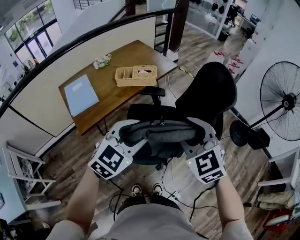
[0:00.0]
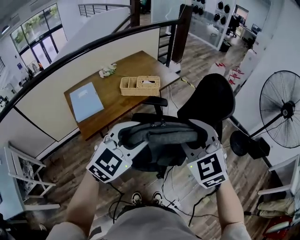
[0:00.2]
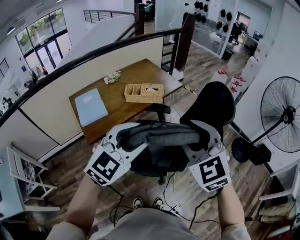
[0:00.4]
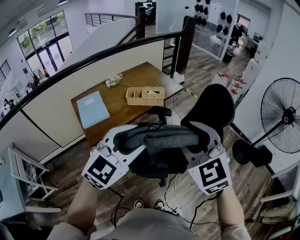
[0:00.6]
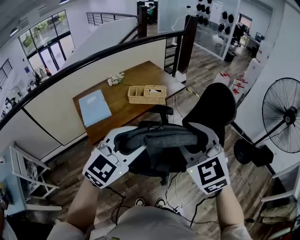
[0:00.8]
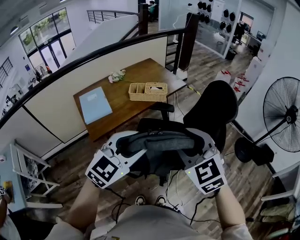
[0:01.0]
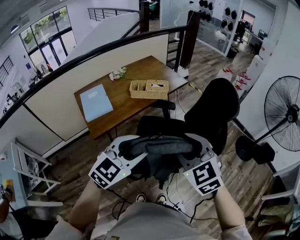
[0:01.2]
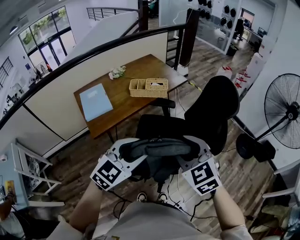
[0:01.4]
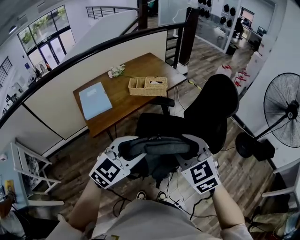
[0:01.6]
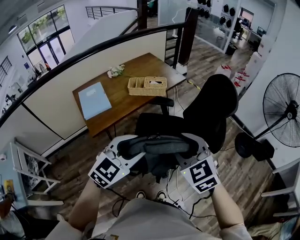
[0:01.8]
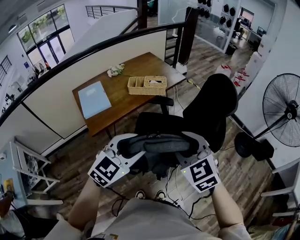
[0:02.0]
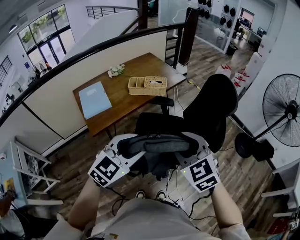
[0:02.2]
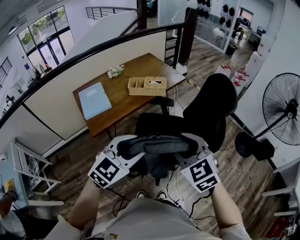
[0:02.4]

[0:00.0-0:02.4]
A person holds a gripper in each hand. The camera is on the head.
0:00.0 to 0:01.2: The grippers both shift backward by some 5 cm. The left gripper moves roughly 10 cm upward and comes back. The right gripper goes upward and returns, some 10 cm each way.
0:01.2 to 0:02.4: The grippers move only a little.

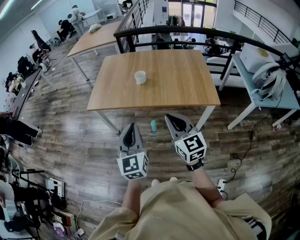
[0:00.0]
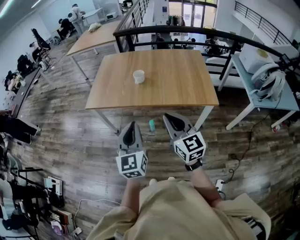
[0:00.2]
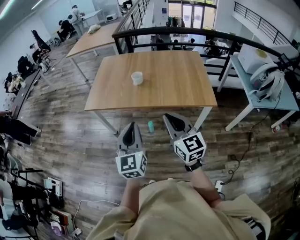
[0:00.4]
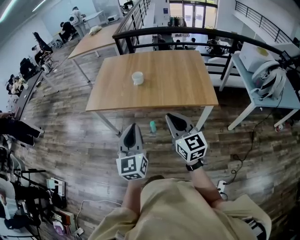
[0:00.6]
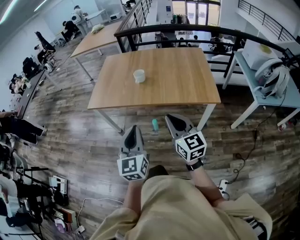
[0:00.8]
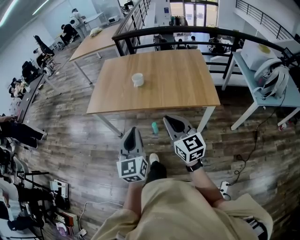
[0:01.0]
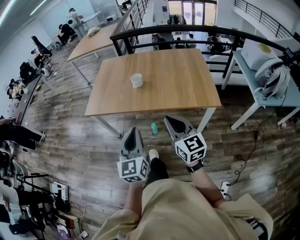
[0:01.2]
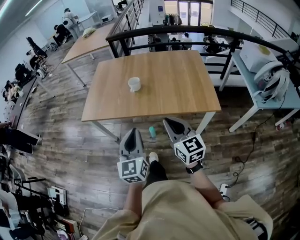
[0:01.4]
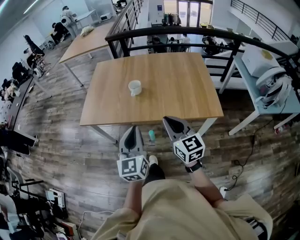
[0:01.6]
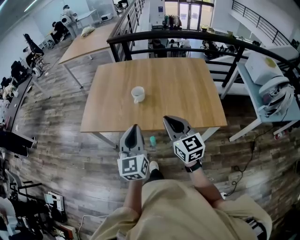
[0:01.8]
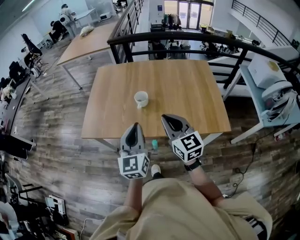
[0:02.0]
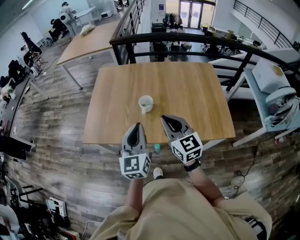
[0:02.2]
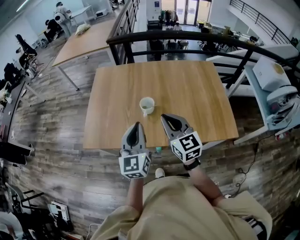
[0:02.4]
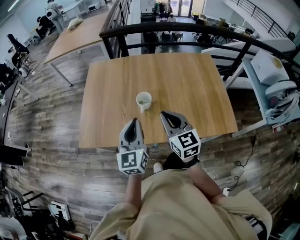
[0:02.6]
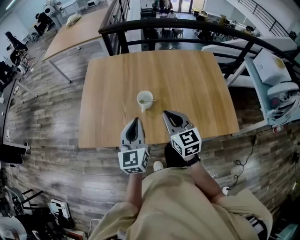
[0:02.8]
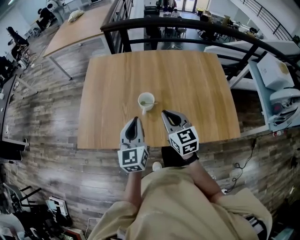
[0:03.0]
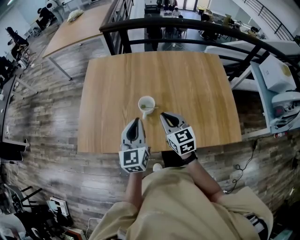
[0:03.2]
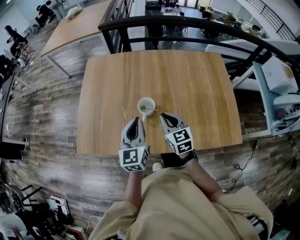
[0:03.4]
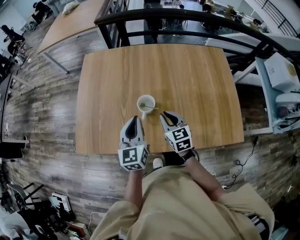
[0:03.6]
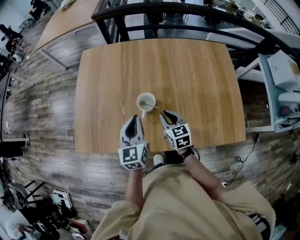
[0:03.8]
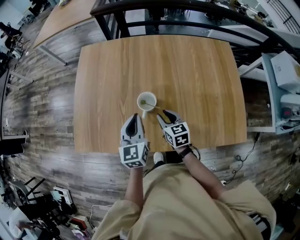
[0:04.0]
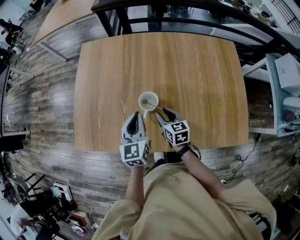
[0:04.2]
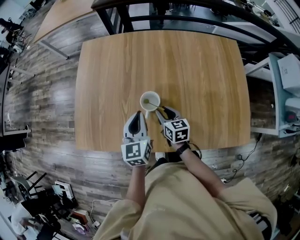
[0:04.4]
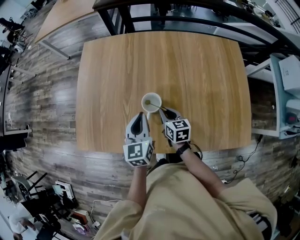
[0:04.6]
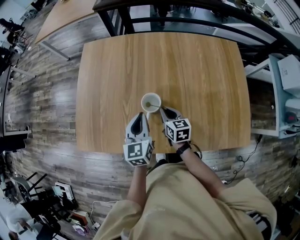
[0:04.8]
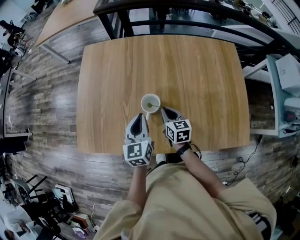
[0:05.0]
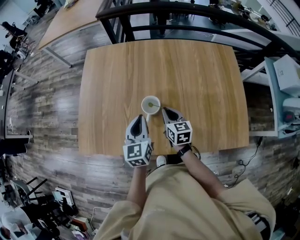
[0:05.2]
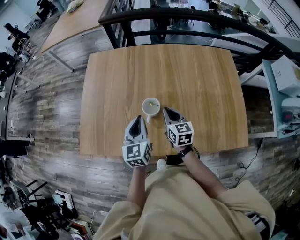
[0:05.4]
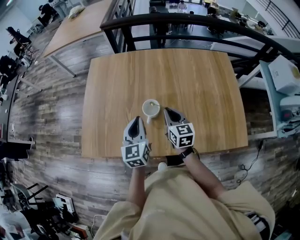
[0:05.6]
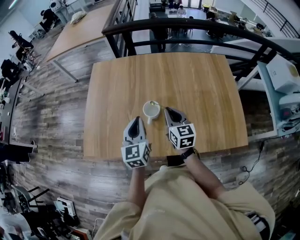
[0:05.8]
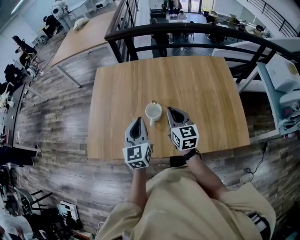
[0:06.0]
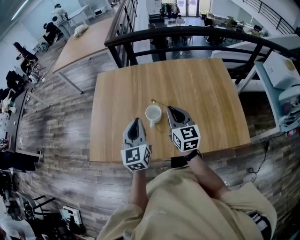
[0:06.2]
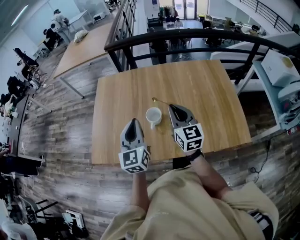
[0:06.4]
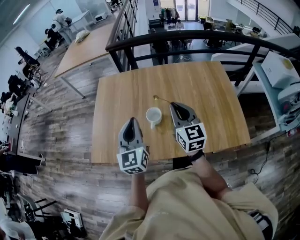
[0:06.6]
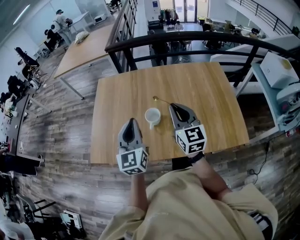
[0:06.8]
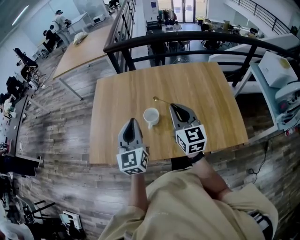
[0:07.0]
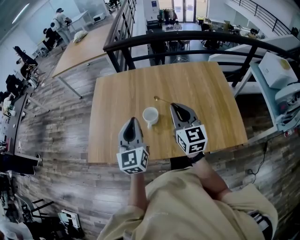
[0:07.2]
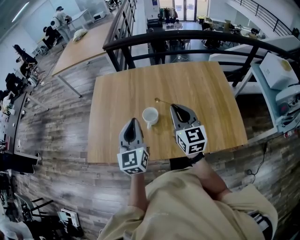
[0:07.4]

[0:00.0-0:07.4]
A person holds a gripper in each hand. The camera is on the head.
0:00.0 to 0:01.4: The left gripper moves forward and to the right, approximately 10 cm. The right gripper moves forward, roughly 5 cm.
0:01.4 to 0:03.0: Both grippers travel together forward, some 40 cm.
0:03.0 to 0:04.4: The left gripper is displaced forward and downward by about 15 cm, while the right gripper shifts roughly 20 cm downward and forward, changes its angle by about 30 degrees, and opens its fingers.
0:04.4 to 0:06.0: The left gripper is displaced upward and backward by about 10 cm; the right gripper moves upward, some 15 cm, rotates approximately 30 degrees, and closes its fingers.
0:06.0 to 0:07.4: Both grippers move upward, about 10 cm.

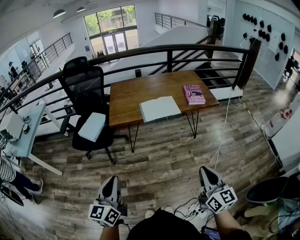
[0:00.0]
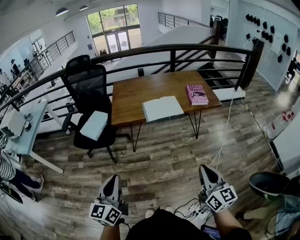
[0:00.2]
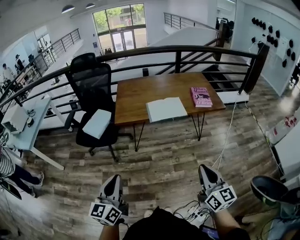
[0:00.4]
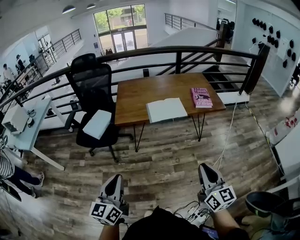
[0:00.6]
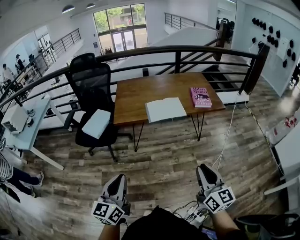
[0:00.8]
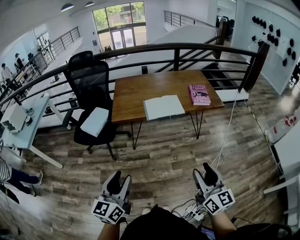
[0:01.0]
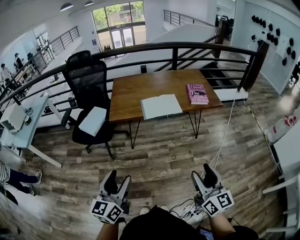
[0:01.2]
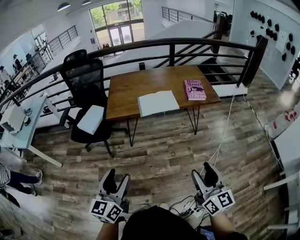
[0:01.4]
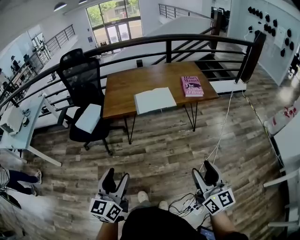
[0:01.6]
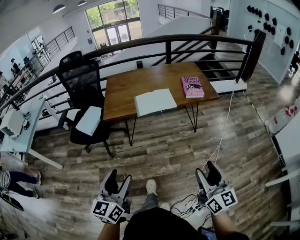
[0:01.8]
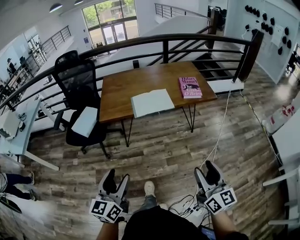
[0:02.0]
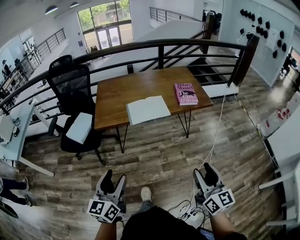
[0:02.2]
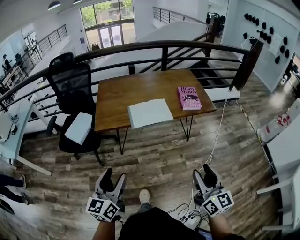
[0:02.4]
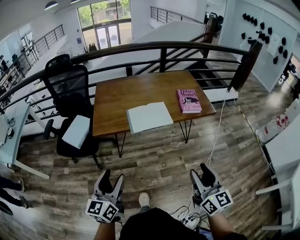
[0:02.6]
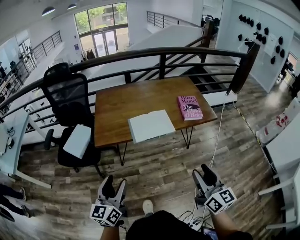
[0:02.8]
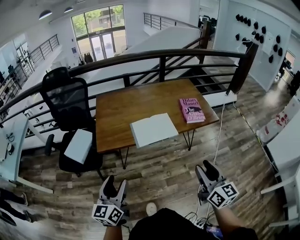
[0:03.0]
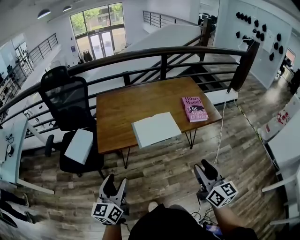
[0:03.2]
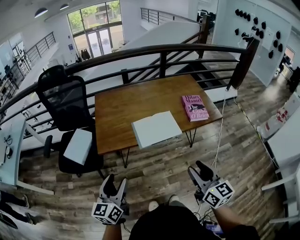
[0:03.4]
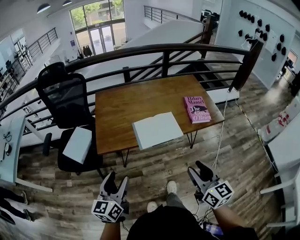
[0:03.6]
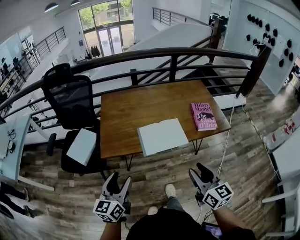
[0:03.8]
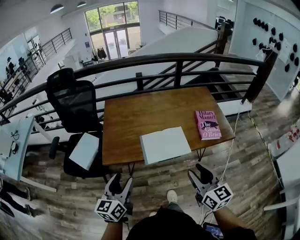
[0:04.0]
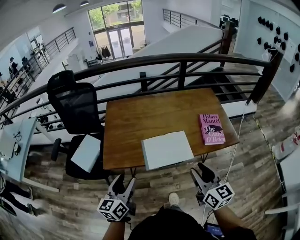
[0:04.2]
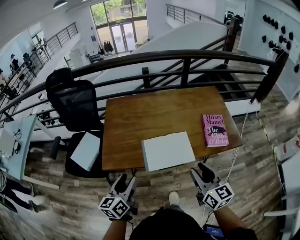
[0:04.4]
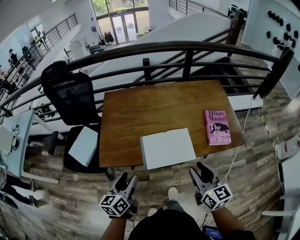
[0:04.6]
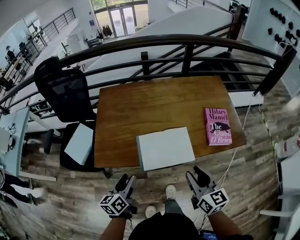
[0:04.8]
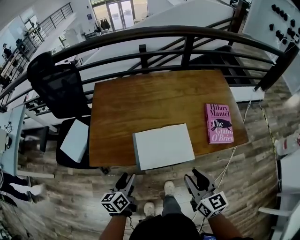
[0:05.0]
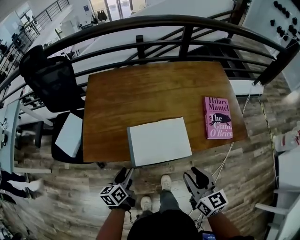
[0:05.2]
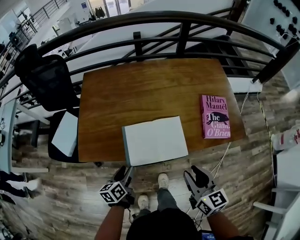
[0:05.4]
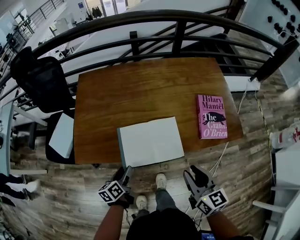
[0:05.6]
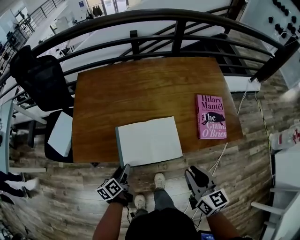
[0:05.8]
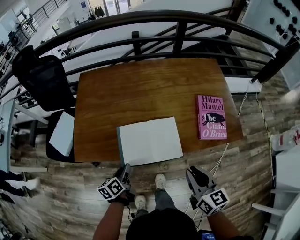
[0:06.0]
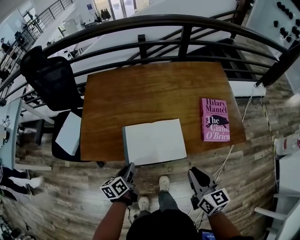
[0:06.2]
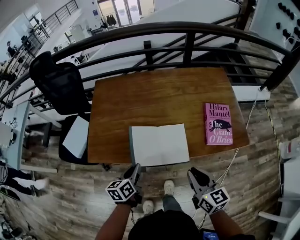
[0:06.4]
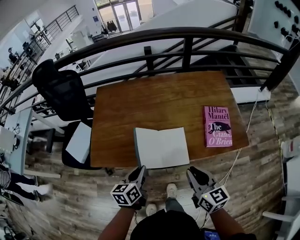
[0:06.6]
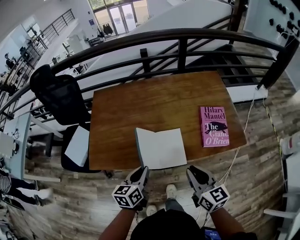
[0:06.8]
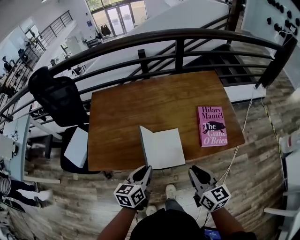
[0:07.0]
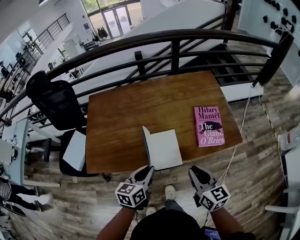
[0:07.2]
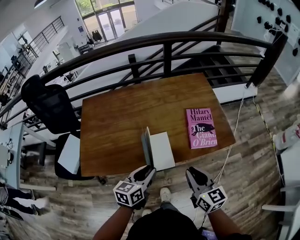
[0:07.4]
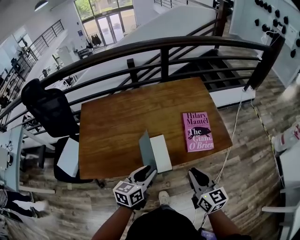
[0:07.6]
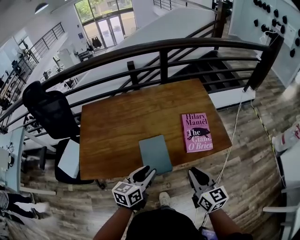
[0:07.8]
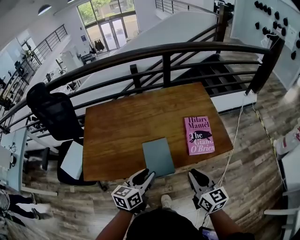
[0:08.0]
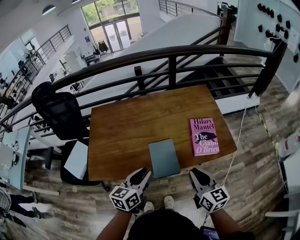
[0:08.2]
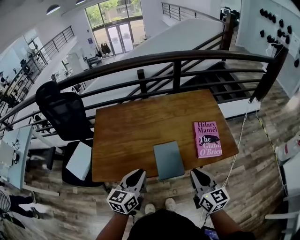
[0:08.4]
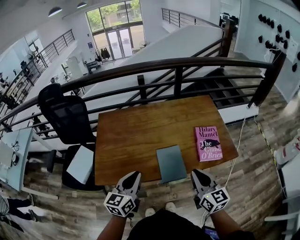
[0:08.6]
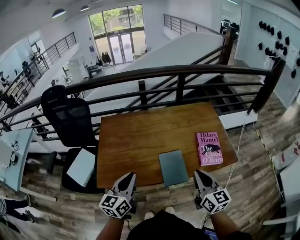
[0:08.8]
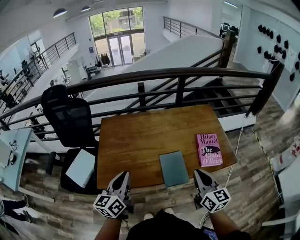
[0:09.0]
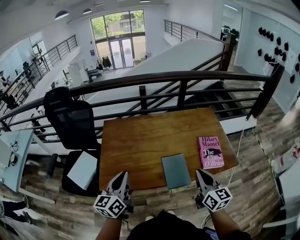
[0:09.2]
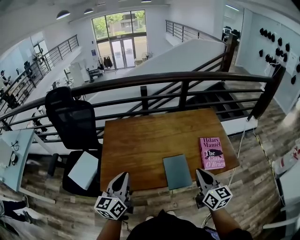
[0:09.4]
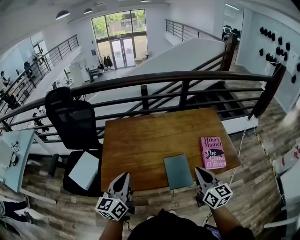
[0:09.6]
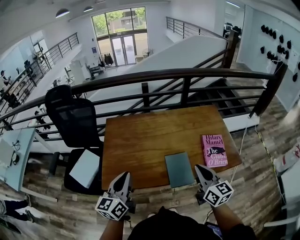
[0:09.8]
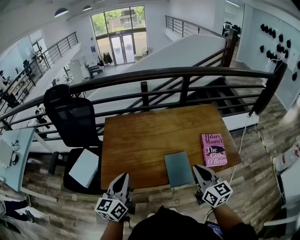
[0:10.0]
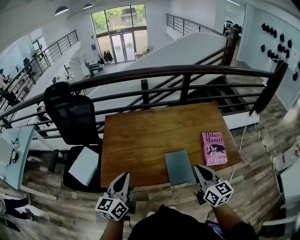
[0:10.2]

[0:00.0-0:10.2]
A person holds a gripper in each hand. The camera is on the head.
0:00.0 to 0:01.4: The right gripper opens; the left gripper moves to the right, roughly 10 cm, and opens.
0:01.4 to 0:03.0: Both grippers move forward, approximately 20 cm.
0:03.0 to 0:04.4: Both grippers travel together forward, roughly 20 cm.
0:04.4 to 0:05.8: The right gripper shifts roughly 10 cm downward and to the right. The left gripper heads downward, covering about 20 cm, and rotates some 30 degrees.
0:05.8 to 0:07.2: The left gripper travels upward and to the right by approximately 20 cm, changes its angle by some 40 degrees, and closes up.
0:07.2 to 0:08.8: The right gripper goes about 10 cm upward, while the left gripper moves to the left and upward, approximately 20 cm, changes its angle by approximately 20 degrees, and opens, then closes once more.
0:08.8 to 0:10.2: The left gripper is displaced to the left by some 5 cm.

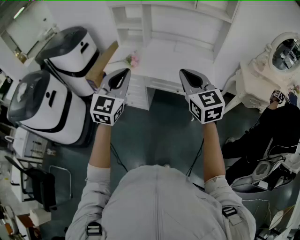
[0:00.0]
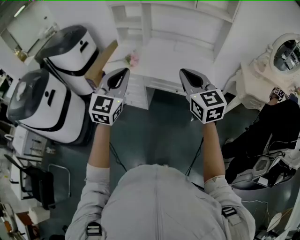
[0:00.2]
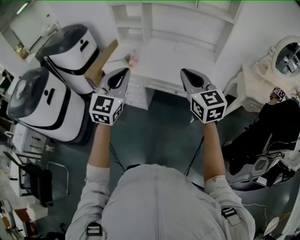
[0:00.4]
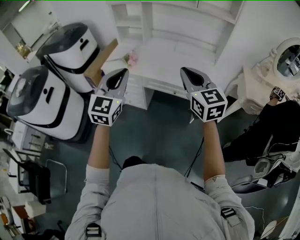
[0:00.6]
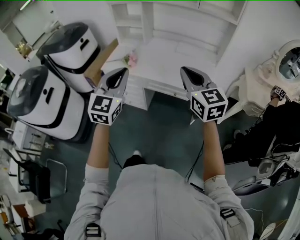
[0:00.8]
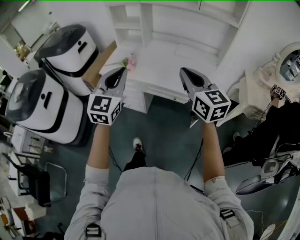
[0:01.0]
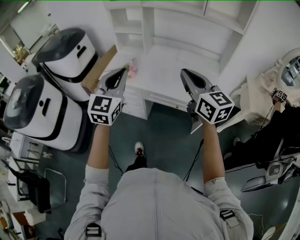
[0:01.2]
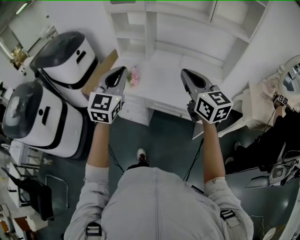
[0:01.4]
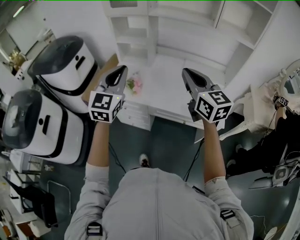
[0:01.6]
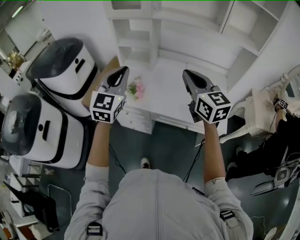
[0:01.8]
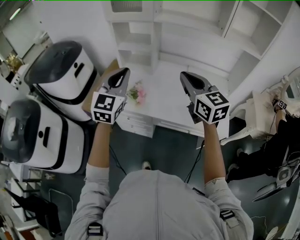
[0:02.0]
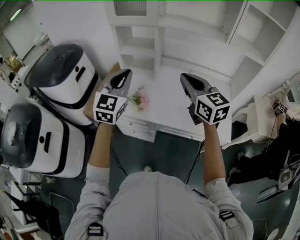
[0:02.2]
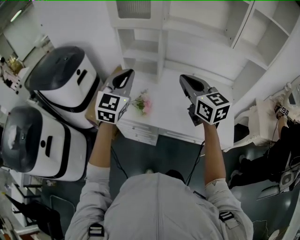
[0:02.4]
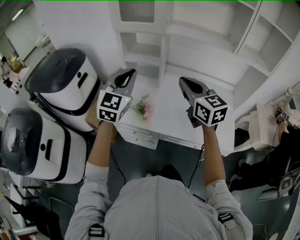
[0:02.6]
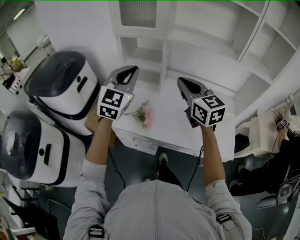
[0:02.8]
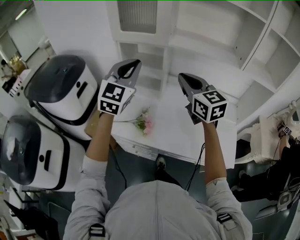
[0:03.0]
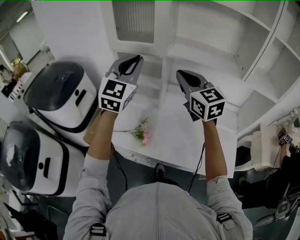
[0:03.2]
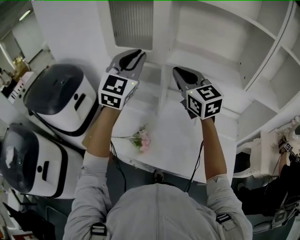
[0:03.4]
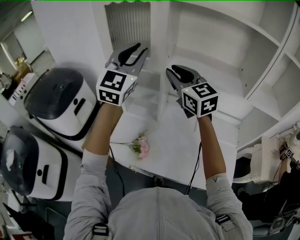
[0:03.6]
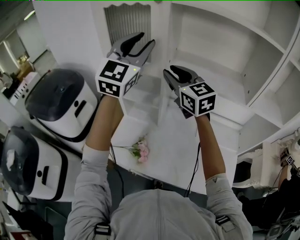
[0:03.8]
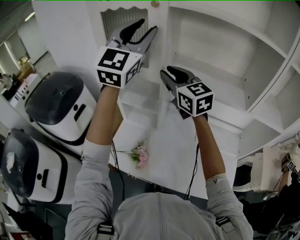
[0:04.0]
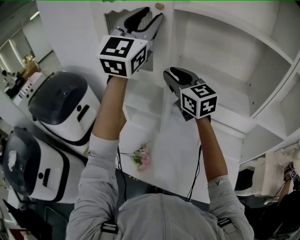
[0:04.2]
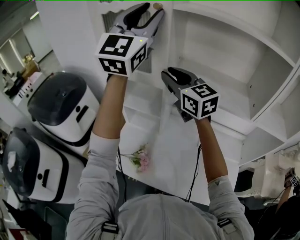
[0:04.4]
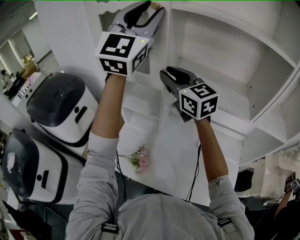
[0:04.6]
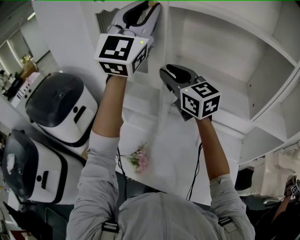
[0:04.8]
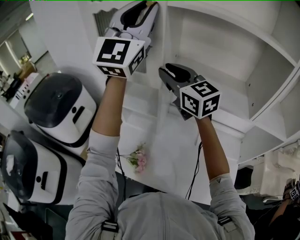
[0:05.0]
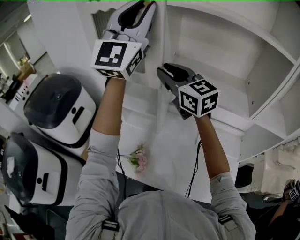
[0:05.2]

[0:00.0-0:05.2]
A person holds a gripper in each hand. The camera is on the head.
0:00.0 to 0:01.8: The two grippers go approximately 30 cm forward.
0:01.8 to 0:03.4: The left gripper moves forward and upward, roughly 35 cm; the right gripper travels forward by roughly 30 cm.
0:03.4 to 0:05.2: The left gripper shifts some 20 cm upward, and turns by roughly 30 degrees, while the right gripper travels forward by some 10 cm, and opens its fingers.
